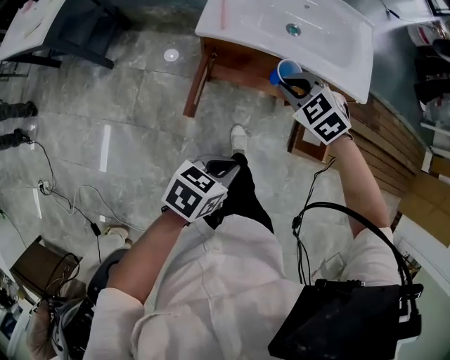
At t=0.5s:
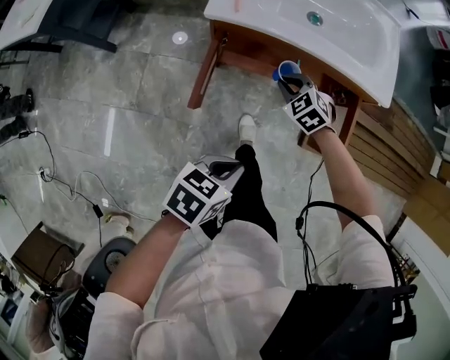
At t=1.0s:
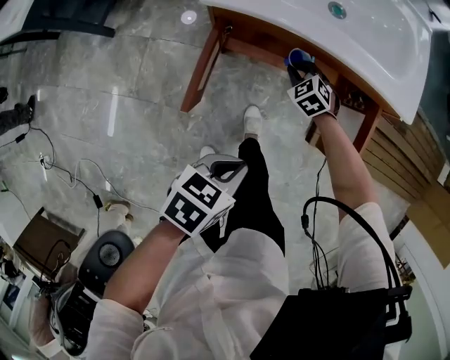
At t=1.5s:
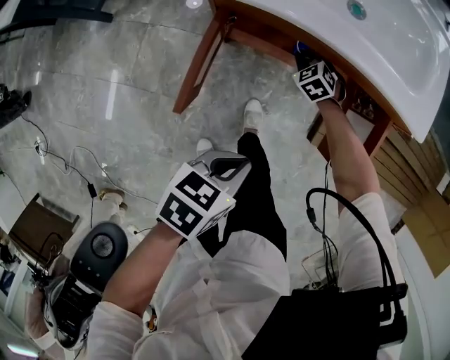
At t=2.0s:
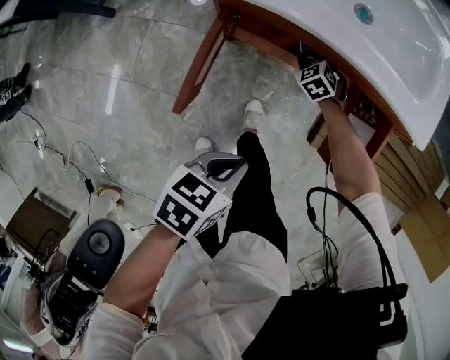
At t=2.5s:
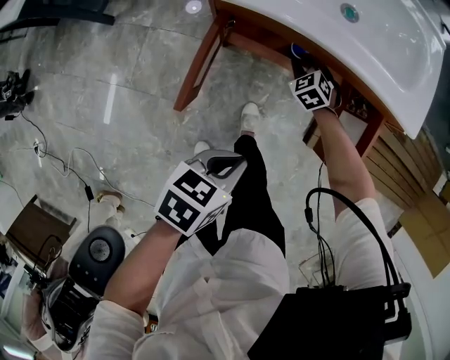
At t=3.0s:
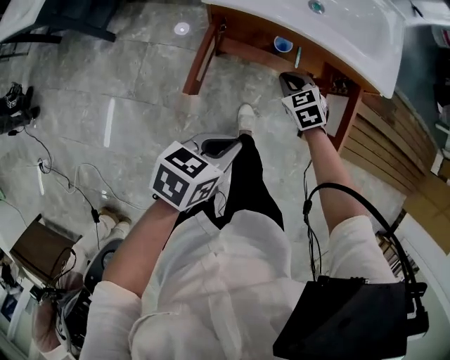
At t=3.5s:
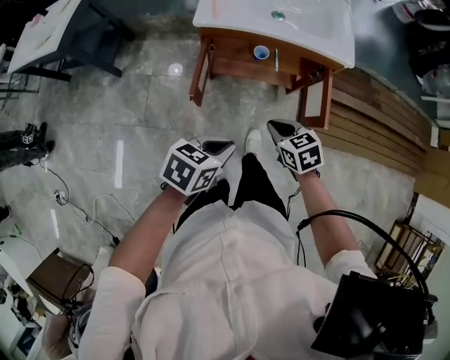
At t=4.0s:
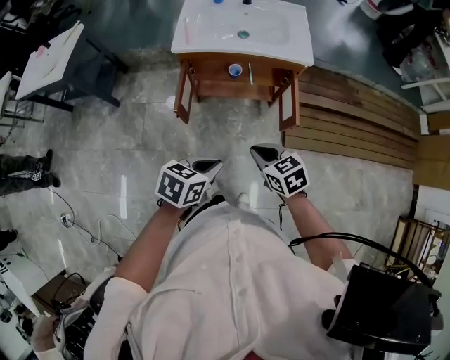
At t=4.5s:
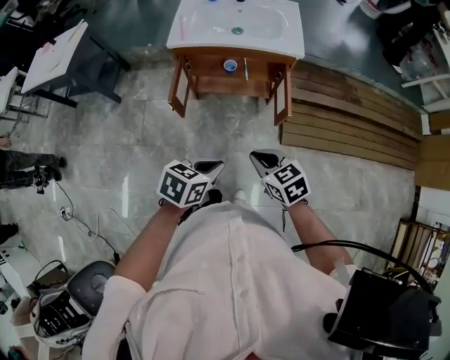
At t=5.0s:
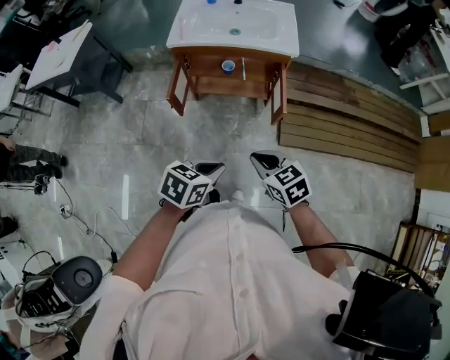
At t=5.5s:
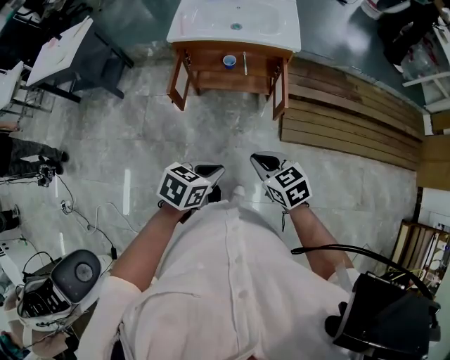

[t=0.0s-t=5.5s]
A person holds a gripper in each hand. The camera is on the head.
t=0.0s to t=2.0s: The right gripper goes some 35 cm downward; the left gripper moves downward, roughly 10 cm.
t=2.0s to t=3.5s: The right gripper goes approximately 40 cm backward and upward, and changes its angle by approximately 40 degrees, while the left gripper is displaced upward and backward by approximately 20 cm.
t=3.5s to t=5.5s: The left gripper is displaced backward and to the right by approximately 20 cm; the right gripper heads backward, upward and to the right, covering roughly 25 cm.

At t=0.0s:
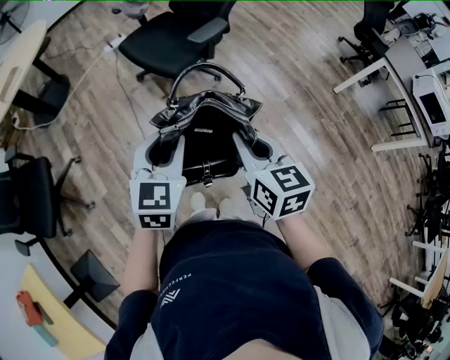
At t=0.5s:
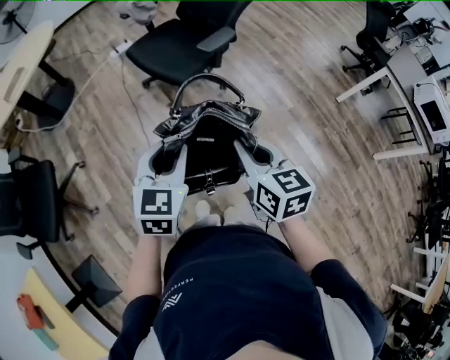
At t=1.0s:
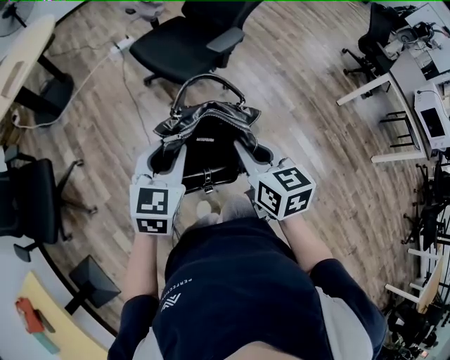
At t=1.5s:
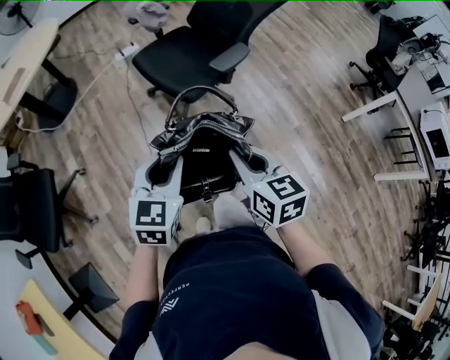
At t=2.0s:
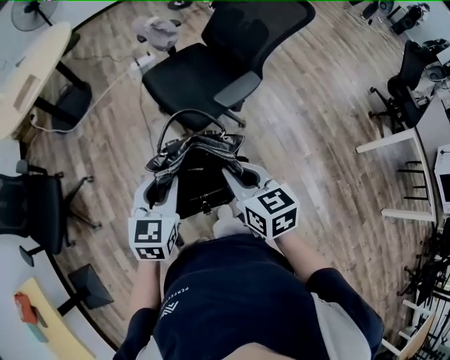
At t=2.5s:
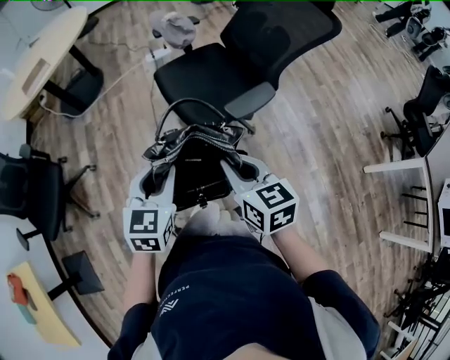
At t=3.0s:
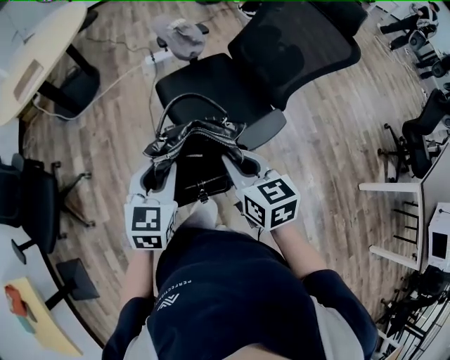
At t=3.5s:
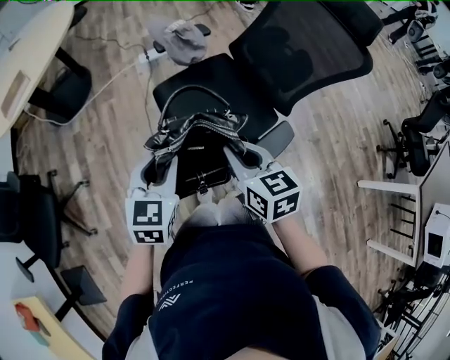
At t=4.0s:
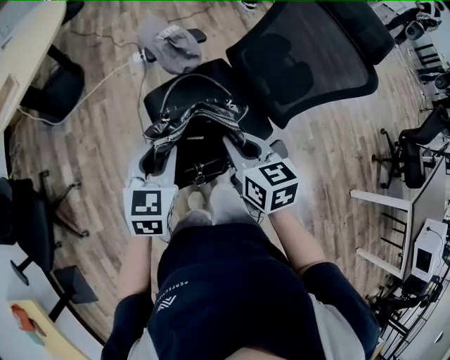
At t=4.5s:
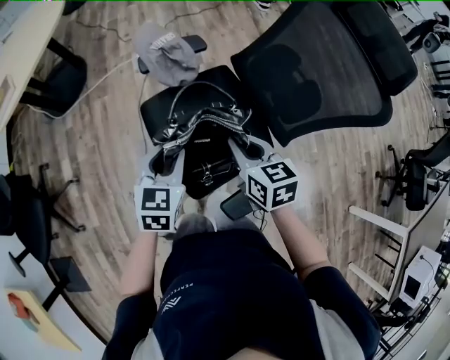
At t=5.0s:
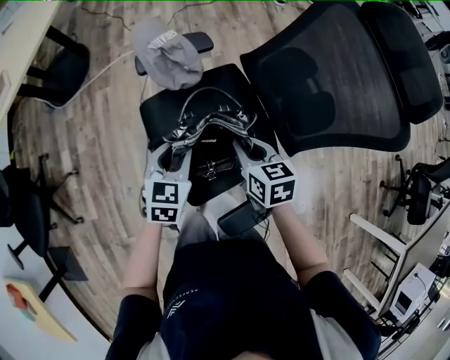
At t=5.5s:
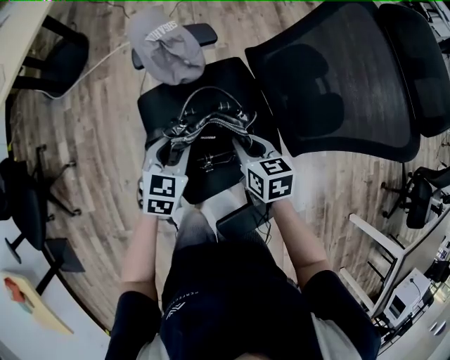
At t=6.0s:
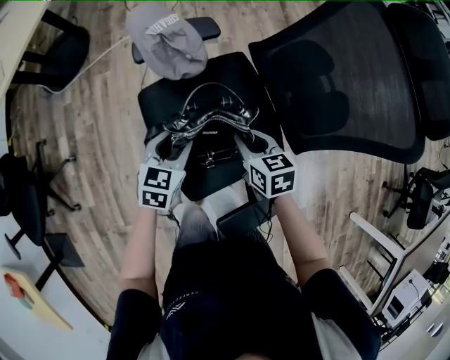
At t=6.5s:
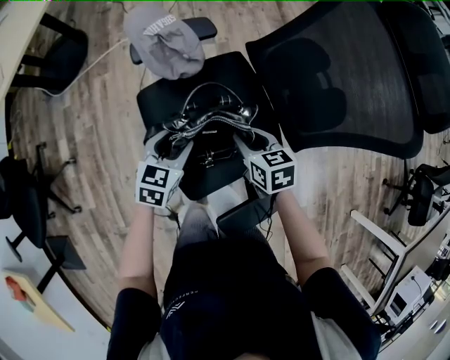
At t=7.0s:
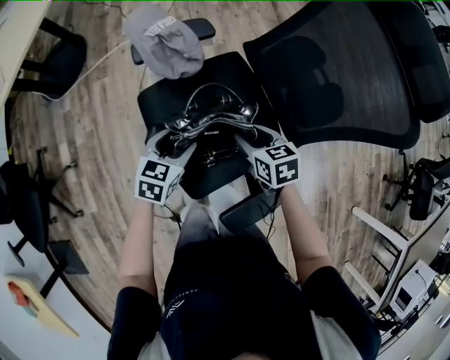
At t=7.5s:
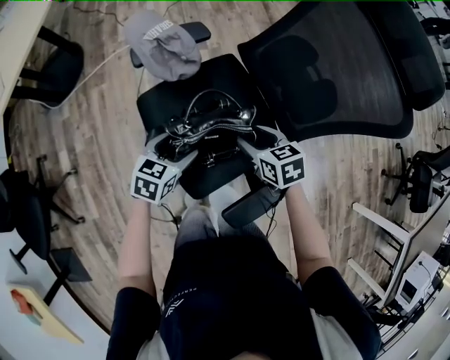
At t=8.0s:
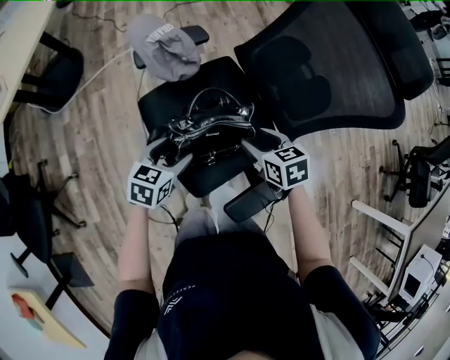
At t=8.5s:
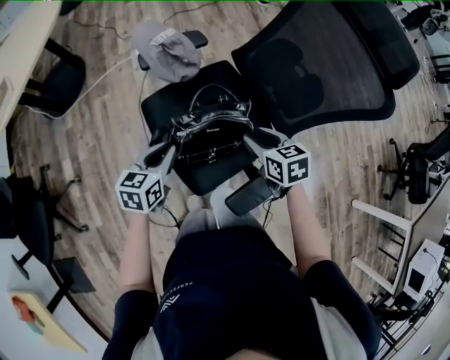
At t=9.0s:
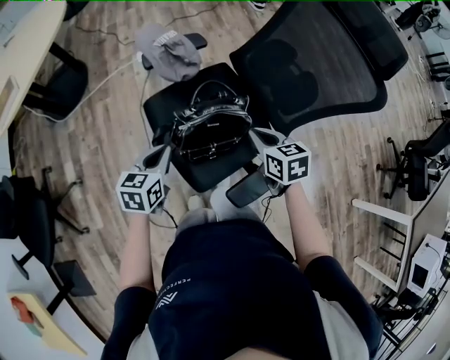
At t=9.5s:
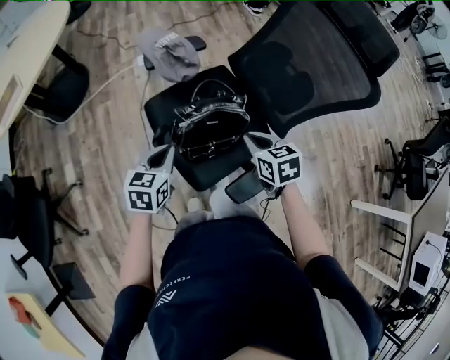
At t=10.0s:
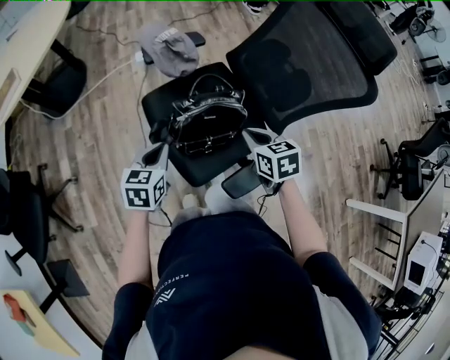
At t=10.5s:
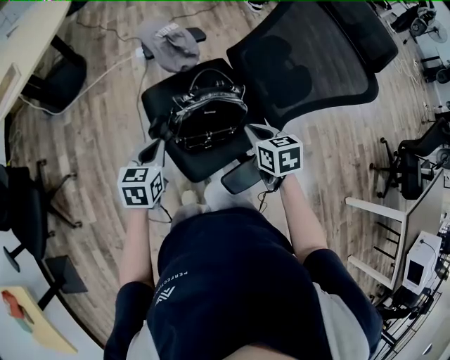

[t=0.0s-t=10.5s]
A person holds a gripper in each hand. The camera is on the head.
t=0.0s to t=2.0s: The grippers both shift forward by roughly 20 cm.
t=2.0s to t=4.0s: The grippers both shift forward by about 40 cm.
t=4.0s to t=6.5s: The two grippers go some 25 cm downward, forward and to the right.
t=6.5s to t=8.5s: The left gripper travels upward, backward and to the left by roughly 10 cm, and closes its fingers; the right gripper heads upward and backward, covering roughly 10 cm.
t=8.5s to t=10.5s: The left gripper travels backward by some 5 cm. Meanwhile the right gripper changes place by about 5 cm, and closes up.

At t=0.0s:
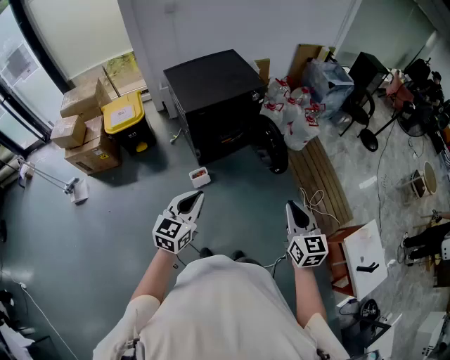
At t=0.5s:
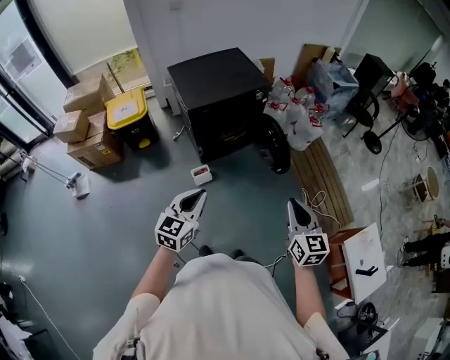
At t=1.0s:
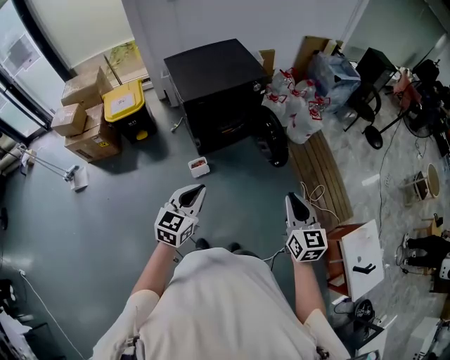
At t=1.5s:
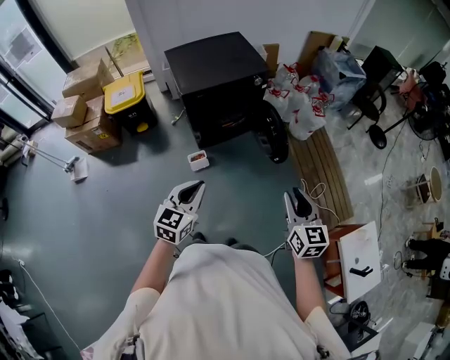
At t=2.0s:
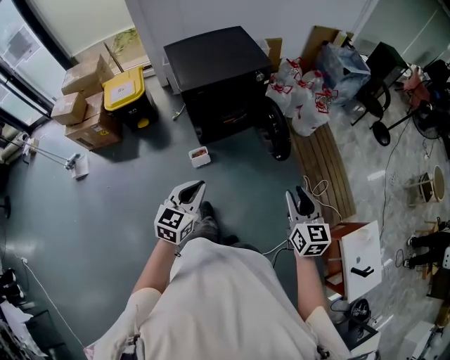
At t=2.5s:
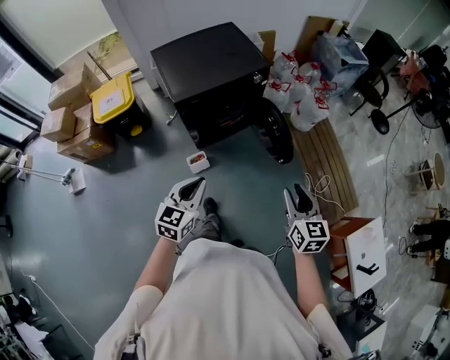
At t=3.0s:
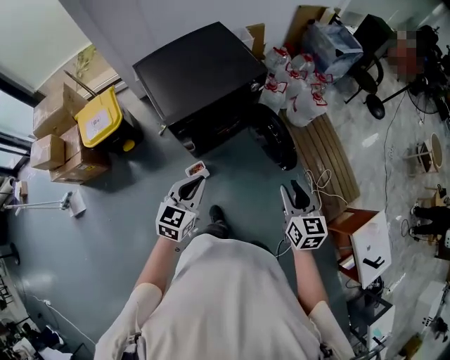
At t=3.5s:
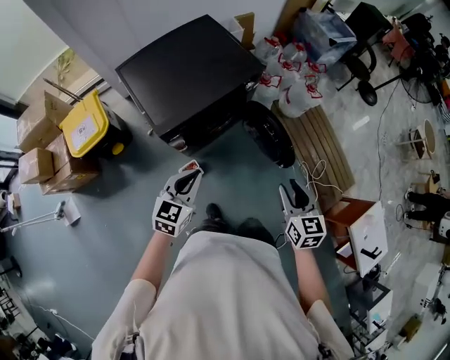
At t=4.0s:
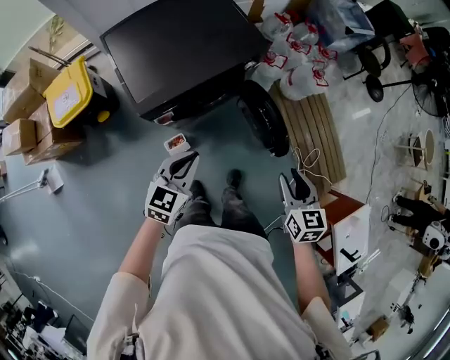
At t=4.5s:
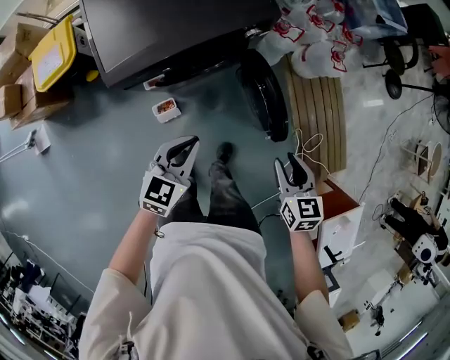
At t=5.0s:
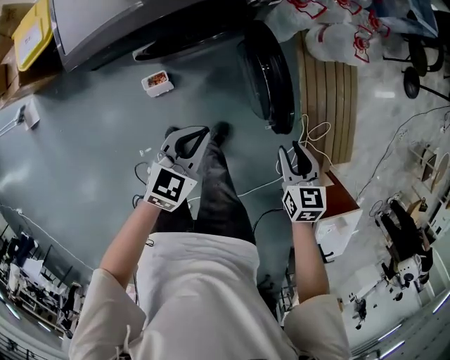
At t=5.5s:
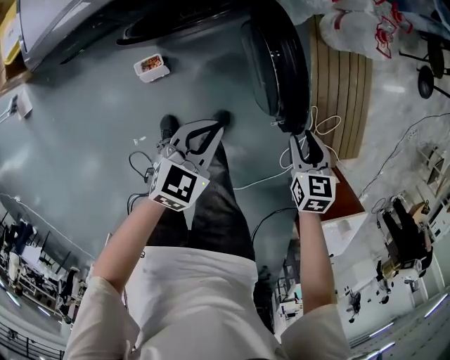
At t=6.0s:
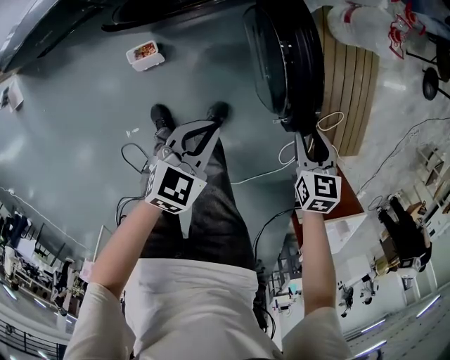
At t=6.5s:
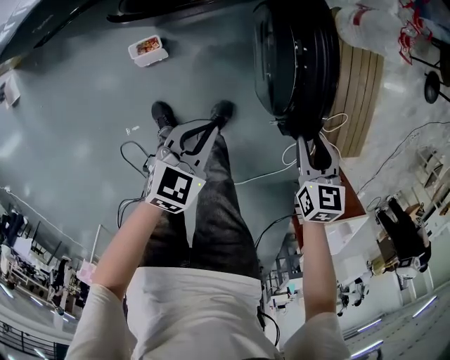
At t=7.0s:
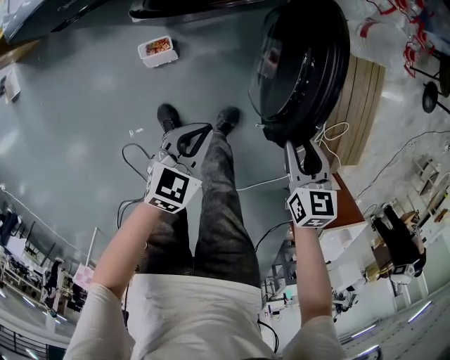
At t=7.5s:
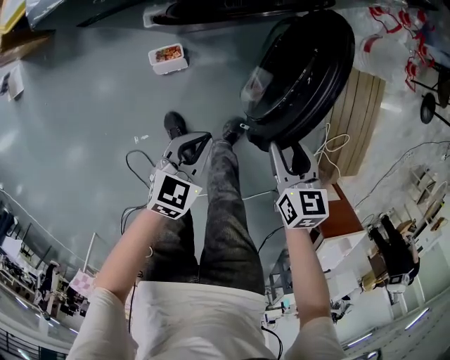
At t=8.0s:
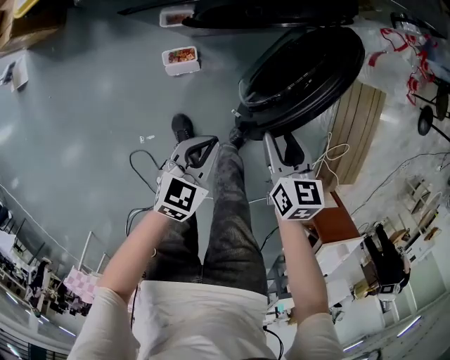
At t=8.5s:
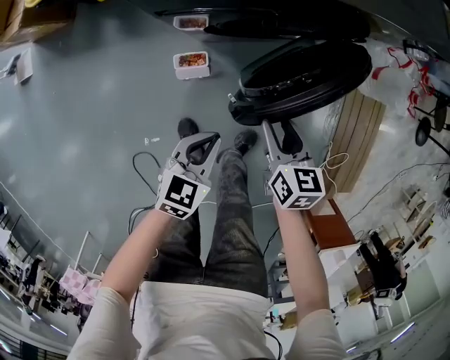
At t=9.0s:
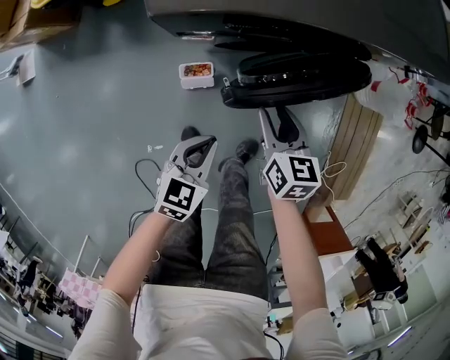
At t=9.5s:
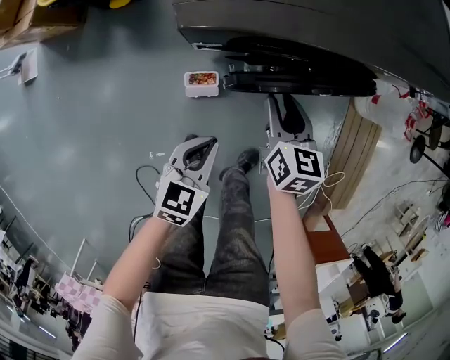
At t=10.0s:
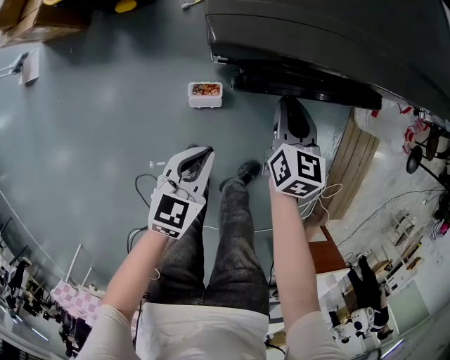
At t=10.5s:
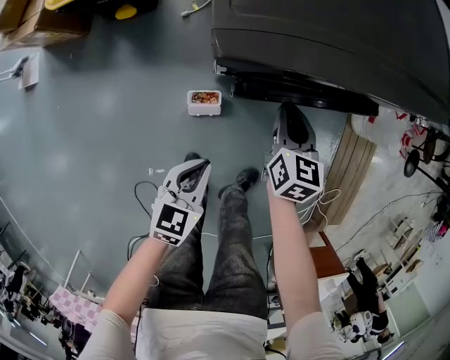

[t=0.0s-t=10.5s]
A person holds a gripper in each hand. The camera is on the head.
t=0.0s to t=2.0s: The left gripper shifts about 5 cm to the right, while the right gripper shifts some 10 cm forward and to the right, and opens.
t=2.0s to t=4.0s: Both grippers travel together forward, some 35 cm.
t=4.0s to t=6.5s: Both grippers move downward, some 40 cm. The left gripper rotates about 20 degrees, while the right gripper changes its angle by roughly 20 degrees.
t=6.5s to t=8.5s: The right gripper goes approximately 30 cm to the left; the left gripper heads to the left, covering approximately 20 cm.
t=8.5s to t=10.5s: The left gripper travels to the left by roughly 10 cm. Meanwhile the right gripper travels forward and to the left by some 20 cm, and closes up.
